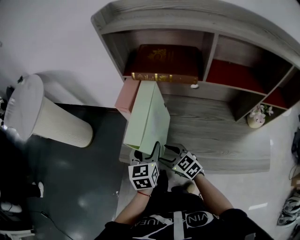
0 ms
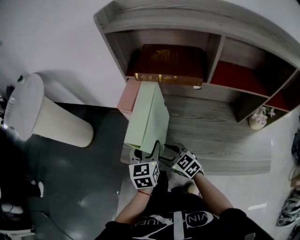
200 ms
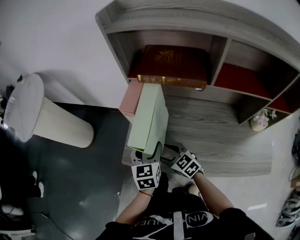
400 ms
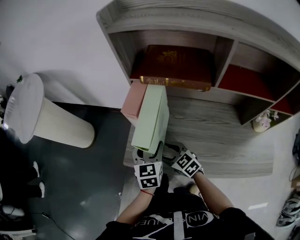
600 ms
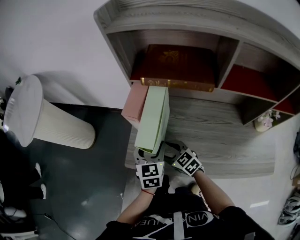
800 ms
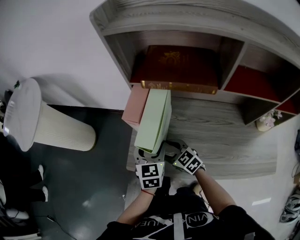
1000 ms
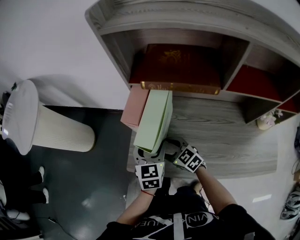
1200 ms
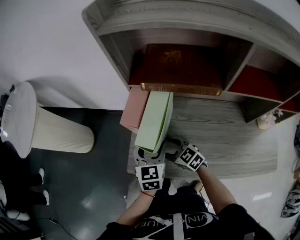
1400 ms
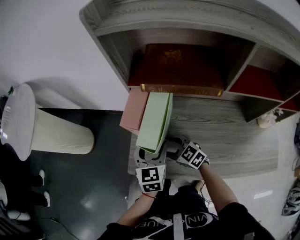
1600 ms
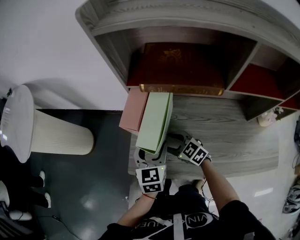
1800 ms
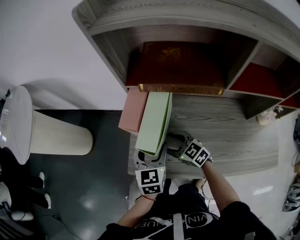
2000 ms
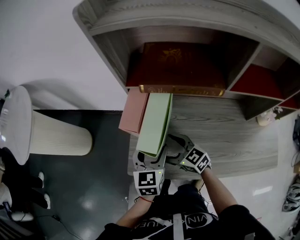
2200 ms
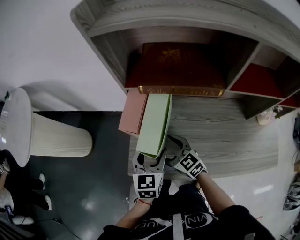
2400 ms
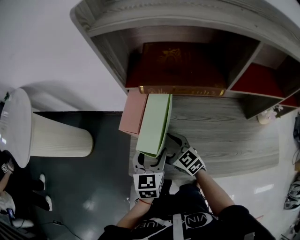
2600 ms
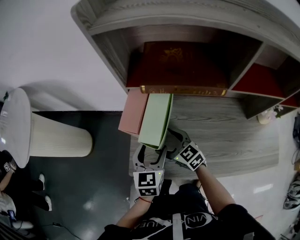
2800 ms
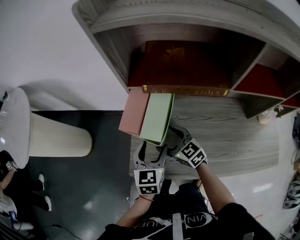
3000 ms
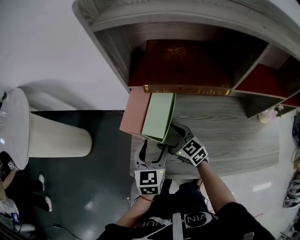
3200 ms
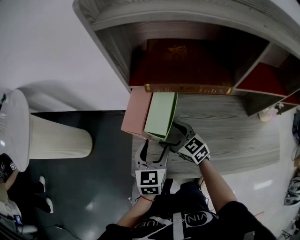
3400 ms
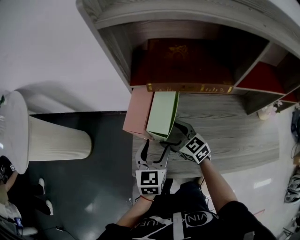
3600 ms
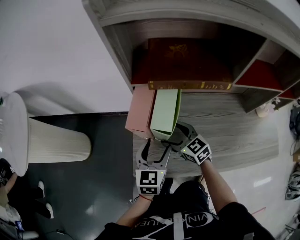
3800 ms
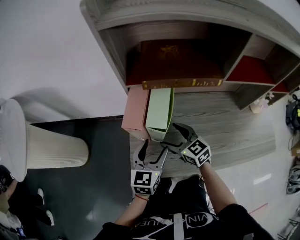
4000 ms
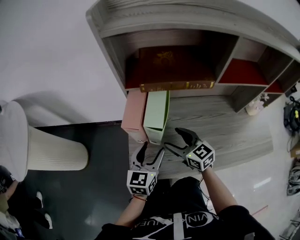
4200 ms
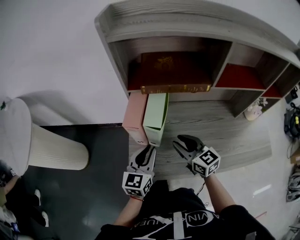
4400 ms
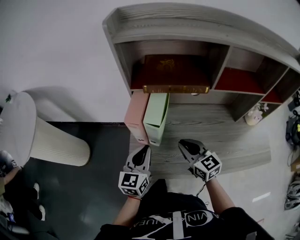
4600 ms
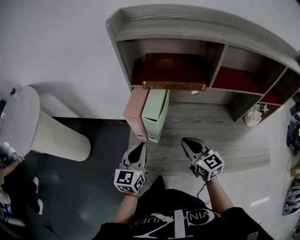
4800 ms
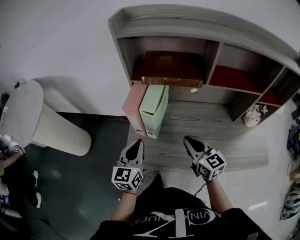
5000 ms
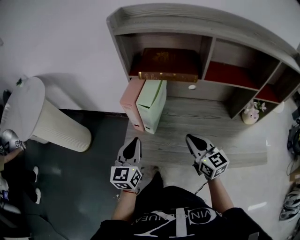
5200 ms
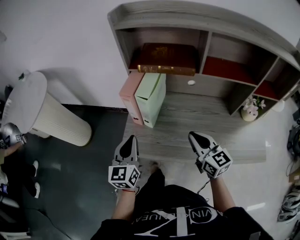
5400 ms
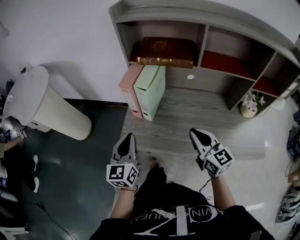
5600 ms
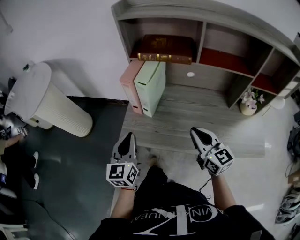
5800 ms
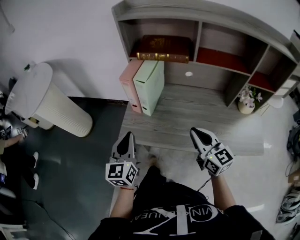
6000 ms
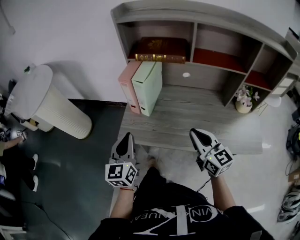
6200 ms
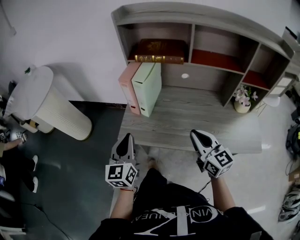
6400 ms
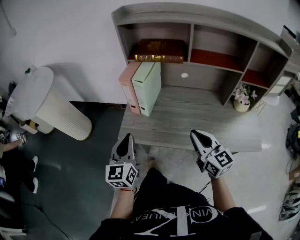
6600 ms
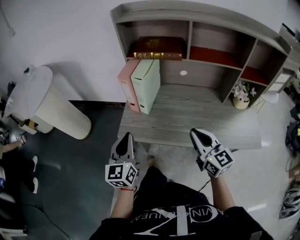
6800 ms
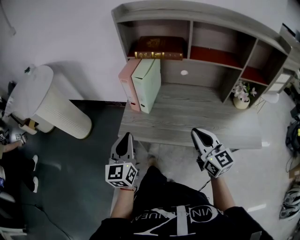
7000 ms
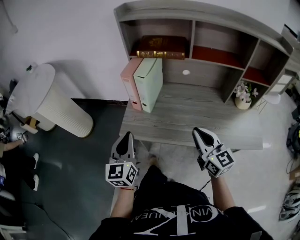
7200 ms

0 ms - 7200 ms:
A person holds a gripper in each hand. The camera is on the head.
0 ms - 1400 ms: Both grippers move forward, some 10 cm.
1400 ms - 2800 ms: There are only small adjustments of the grippers.
2800 ms - 4400 ms: The left gripper closes up, while the right gripper is displaced upward and to the right by about 10 cm, swivels some 20 degrees, and closes up.
4400 ms - 5800 ms: The left gripper travels backward and upward by about 15 cm, and rotates approximately 20 degrees. The right gripper shifts approximately 20 cm backward, to the right and upward.
5800 ms - 7200 ms: Both grippers travel together backward, about 5 cm.

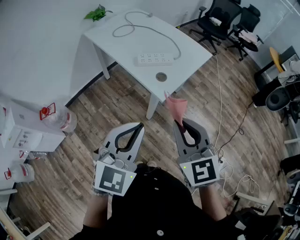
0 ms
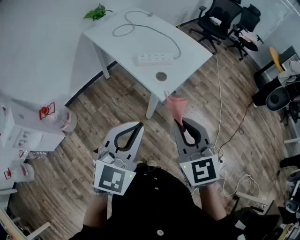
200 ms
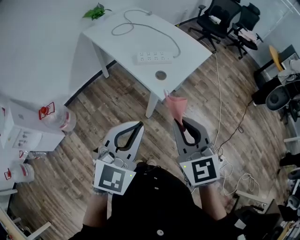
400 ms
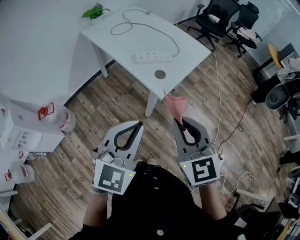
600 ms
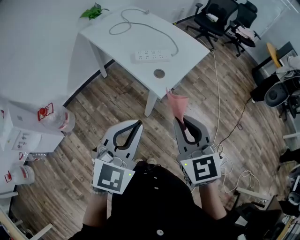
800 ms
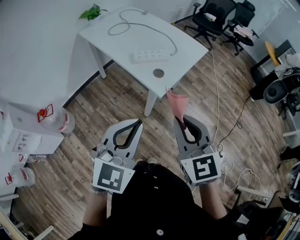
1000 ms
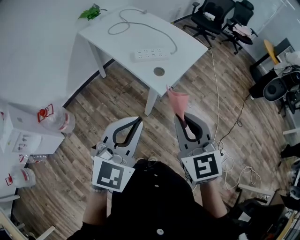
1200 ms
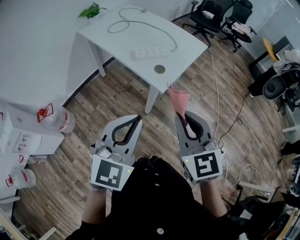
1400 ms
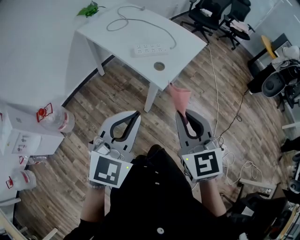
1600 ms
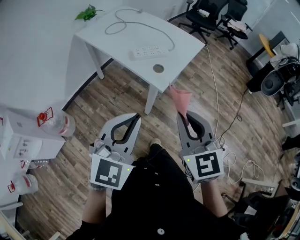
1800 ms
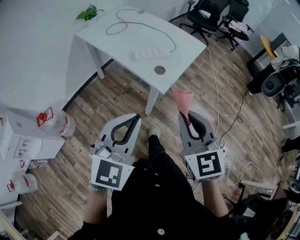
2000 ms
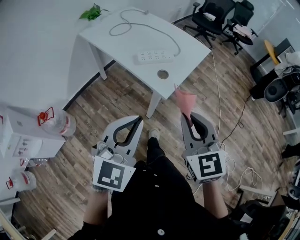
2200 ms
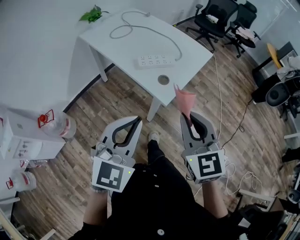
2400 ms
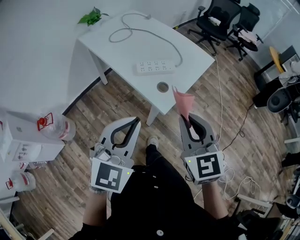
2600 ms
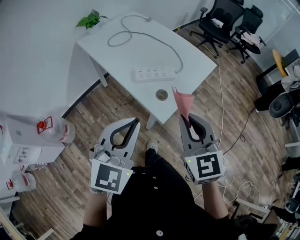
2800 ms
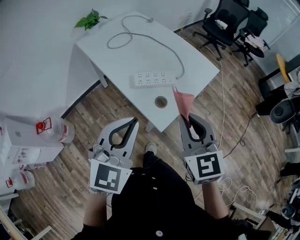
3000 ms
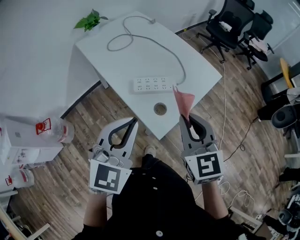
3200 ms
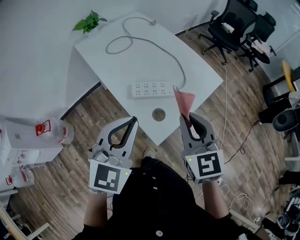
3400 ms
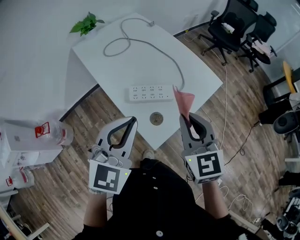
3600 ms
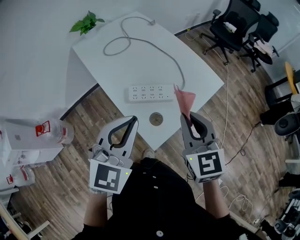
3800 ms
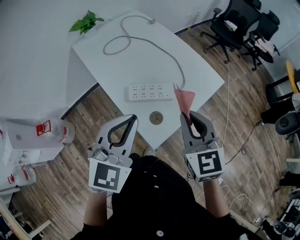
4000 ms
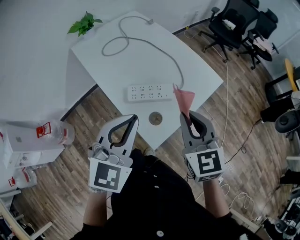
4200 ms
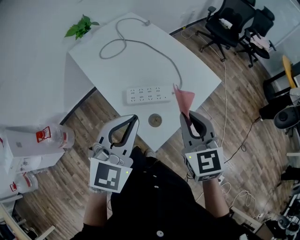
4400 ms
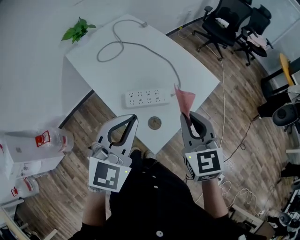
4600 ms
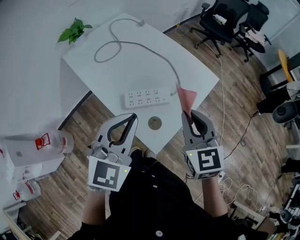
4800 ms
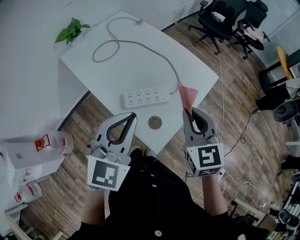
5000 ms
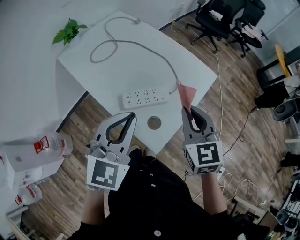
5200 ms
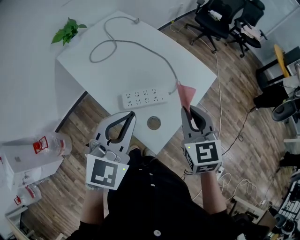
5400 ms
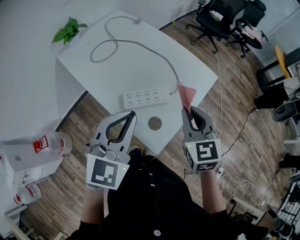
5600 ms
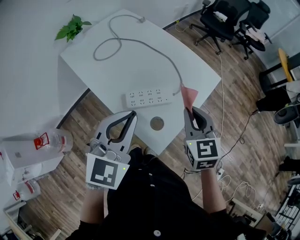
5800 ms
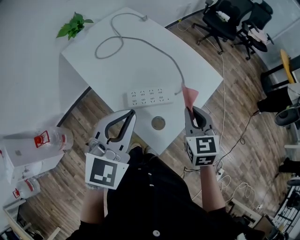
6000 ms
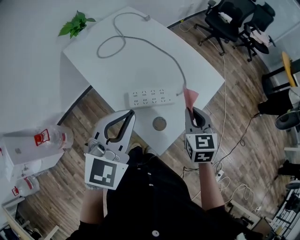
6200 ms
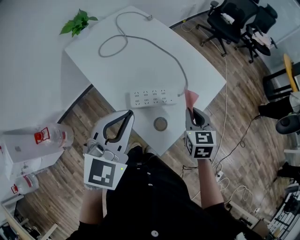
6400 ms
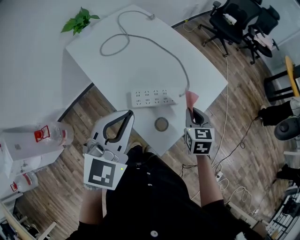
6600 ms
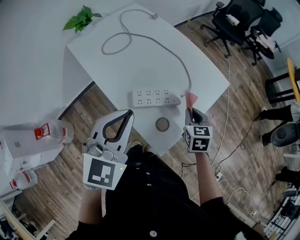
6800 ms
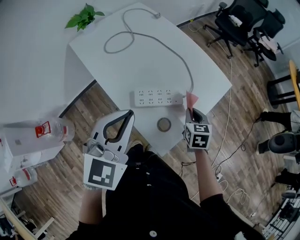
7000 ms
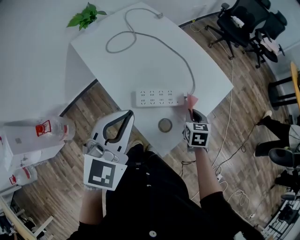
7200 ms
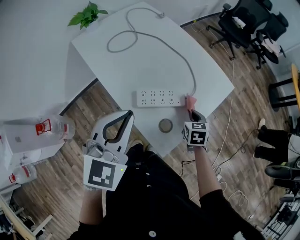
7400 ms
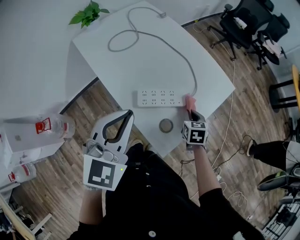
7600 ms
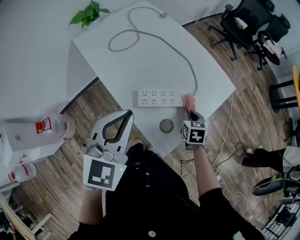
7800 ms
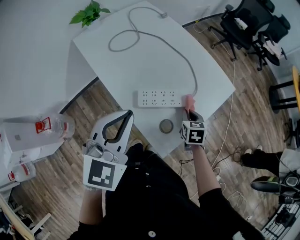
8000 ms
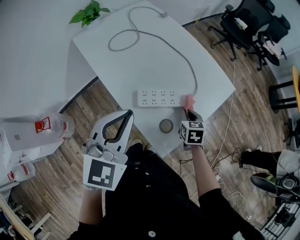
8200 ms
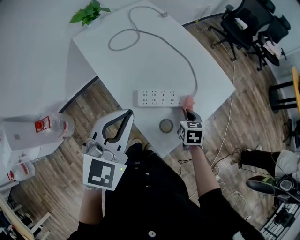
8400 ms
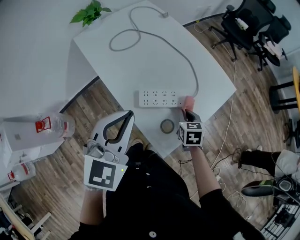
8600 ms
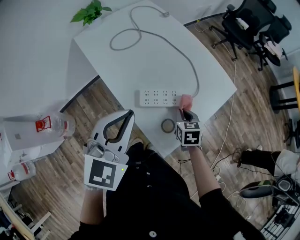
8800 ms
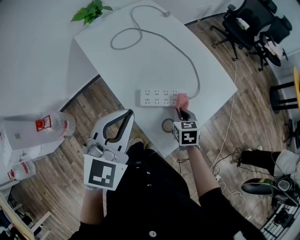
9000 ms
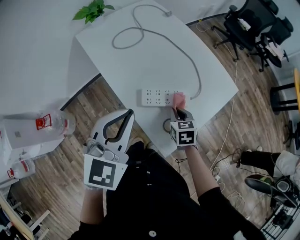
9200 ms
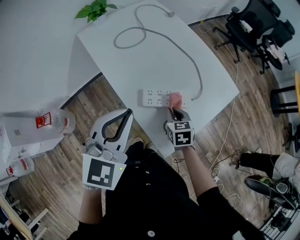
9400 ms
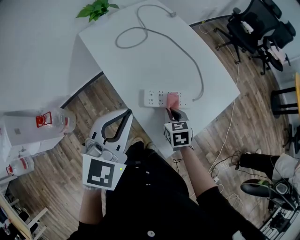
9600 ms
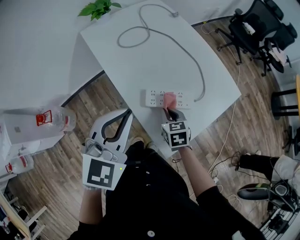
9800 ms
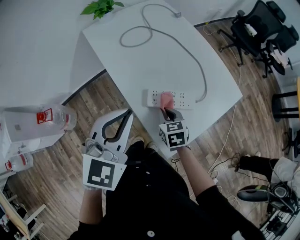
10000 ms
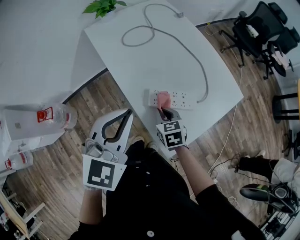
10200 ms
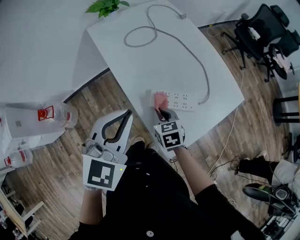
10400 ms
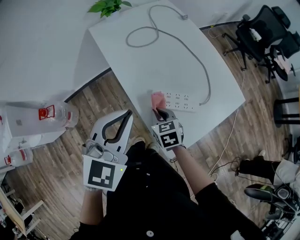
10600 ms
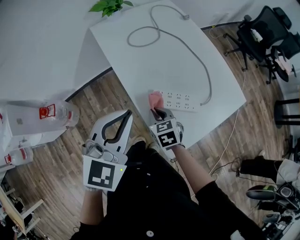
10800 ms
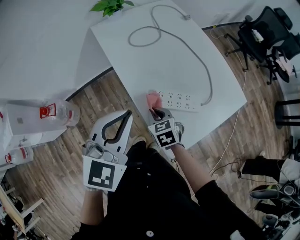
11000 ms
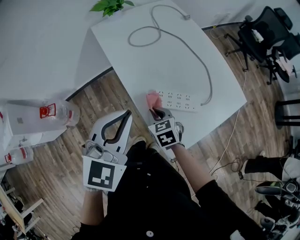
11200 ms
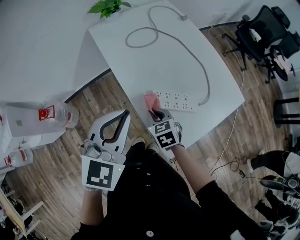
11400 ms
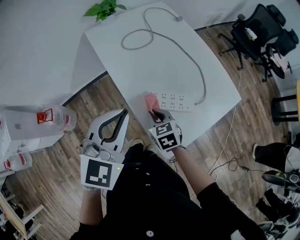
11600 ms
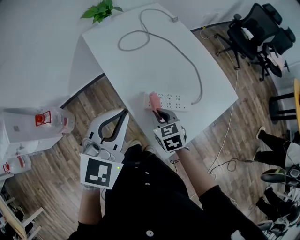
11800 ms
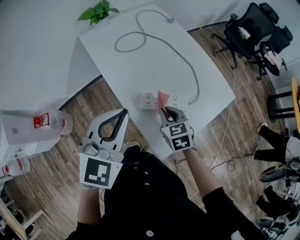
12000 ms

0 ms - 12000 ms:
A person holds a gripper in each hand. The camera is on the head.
0 ms - 1600 ms: The grippers move only a little.
1600 ms - 3000 ms: The grippers both shift forward by approximately 25 cm.
3000 ms - 4400 ms: The two grippers go about 15 cm forward.
4400 ms - 6000 ms: The left gripper ends up approximately 5 cm from where it was. Meanwhile the right gripper shifts some 10 cm downward and forward.
6000 ms - 7600 ms: The right gripper shifts some 20 cm downward, and turns by approximately 20 degrees.
7600 ms - 9000 ms: The right gripper is displaced to the left by roughly 10 cm.
9000 ms - 10400 ms: The right gripper moves to the left, about 15 cm.
10400 ms - 12000 ms: The right gripper heads to the right and upward, covering roughly 10 cm.

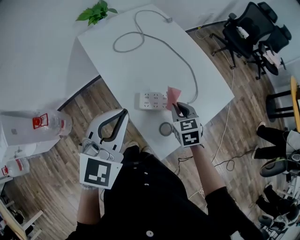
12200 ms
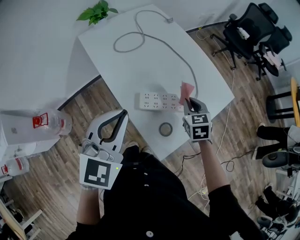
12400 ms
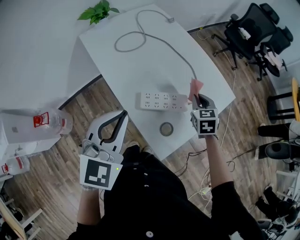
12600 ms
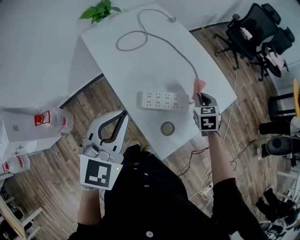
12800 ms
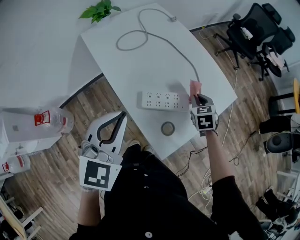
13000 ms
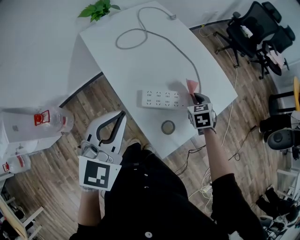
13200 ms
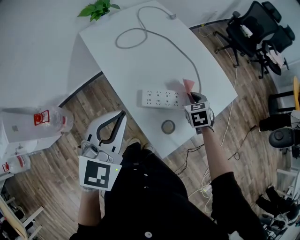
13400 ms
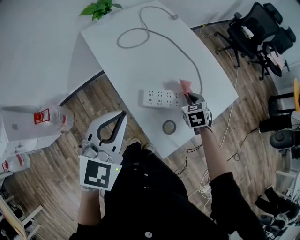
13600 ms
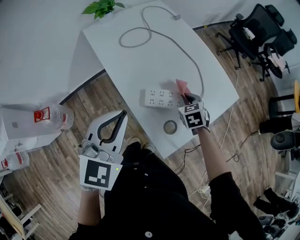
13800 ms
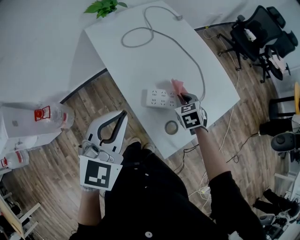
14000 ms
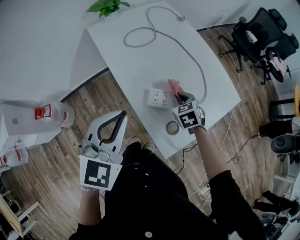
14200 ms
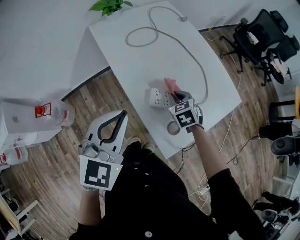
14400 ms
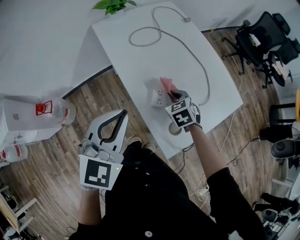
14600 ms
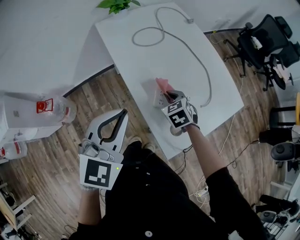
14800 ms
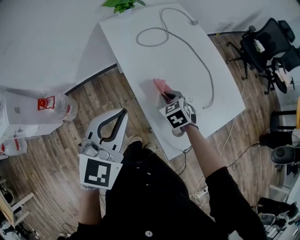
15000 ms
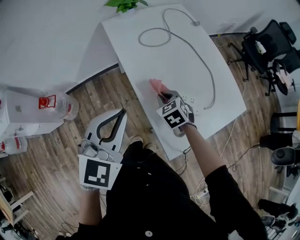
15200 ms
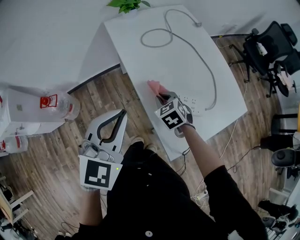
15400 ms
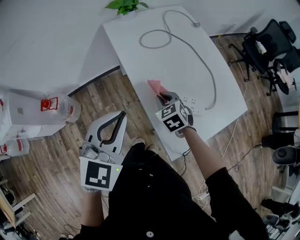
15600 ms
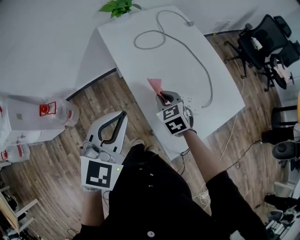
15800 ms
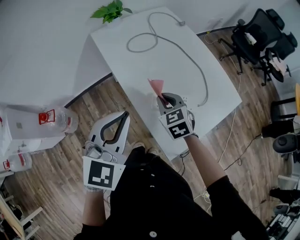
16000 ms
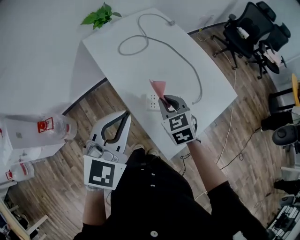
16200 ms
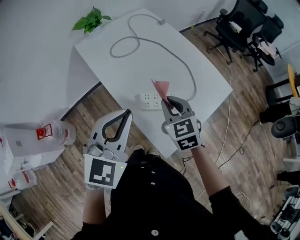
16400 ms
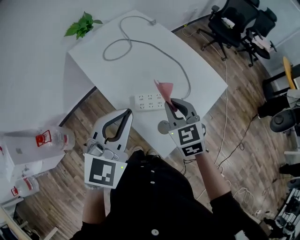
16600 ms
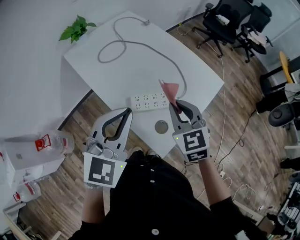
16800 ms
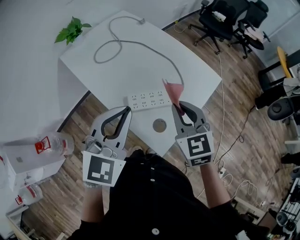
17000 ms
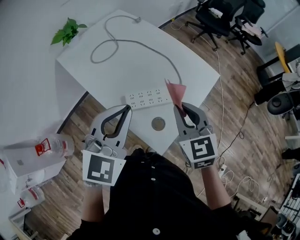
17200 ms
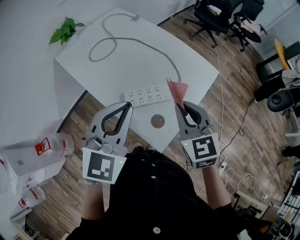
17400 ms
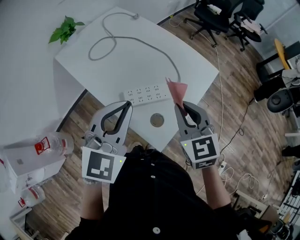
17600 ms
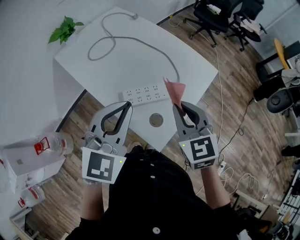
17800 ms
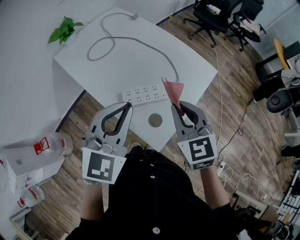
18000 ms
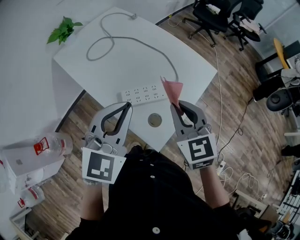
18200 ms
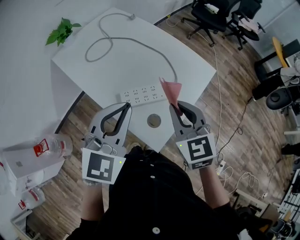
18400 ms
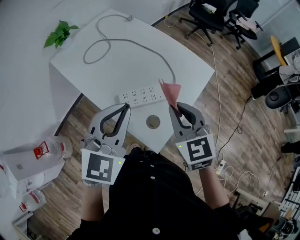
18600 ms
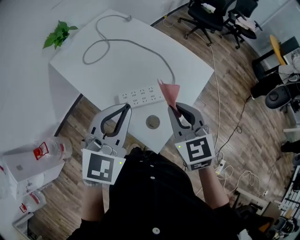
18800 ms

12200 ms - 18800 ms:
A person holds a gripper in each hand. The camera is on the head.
12200 ms - 13800 ms: The right gripper travels to the right and back again, some 10 cm each way.
13800 ms - 15400 ms: The right gripper moves to the left, approximately 20 cm, and turns by approximately 20 degrees, while the left gripper goes about 5 cm to the left.
15400 ms - 17200 ms: The right gripper moves some 30 cm, and changes its angle by approximately 40 degrees, while the left gripper moves roughly 15 cm, and rotates about 20 degrees.
17200 ms - 18800 ms: The grippers stay close to where they were, moving slightly.
